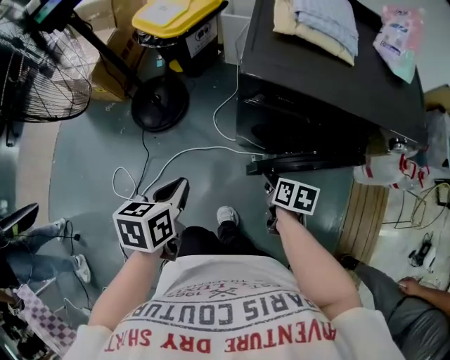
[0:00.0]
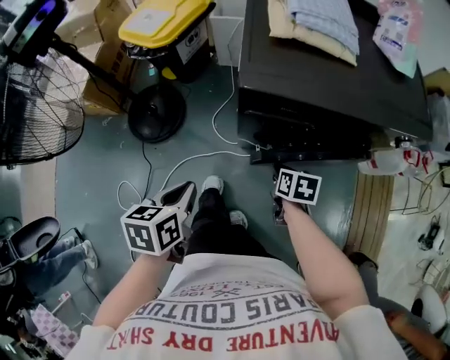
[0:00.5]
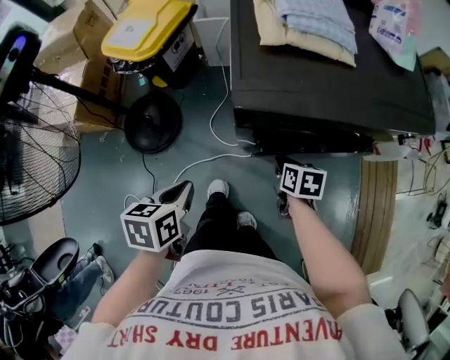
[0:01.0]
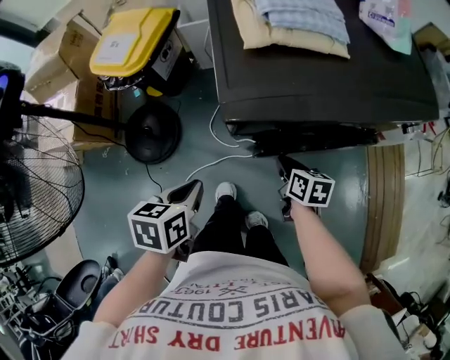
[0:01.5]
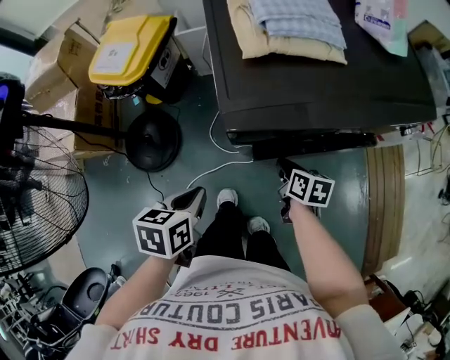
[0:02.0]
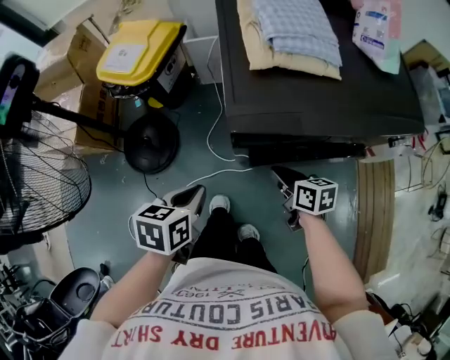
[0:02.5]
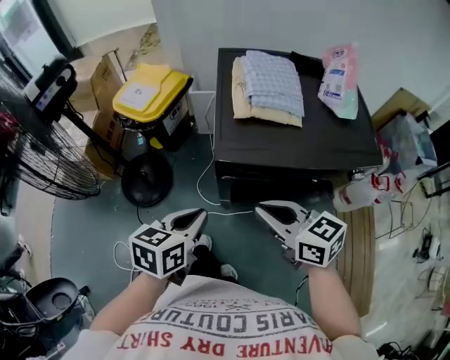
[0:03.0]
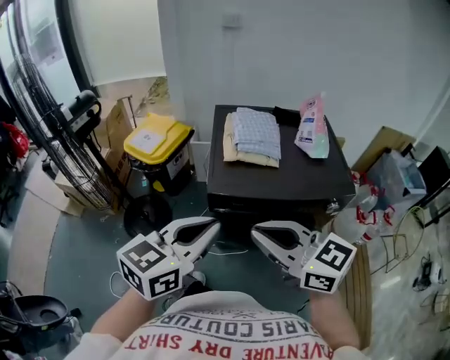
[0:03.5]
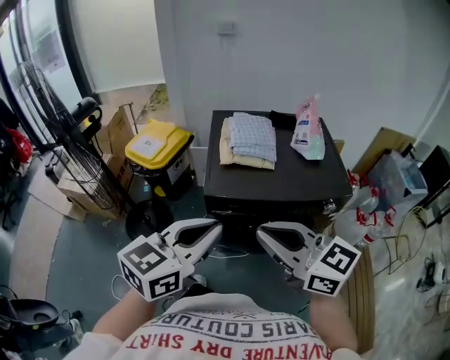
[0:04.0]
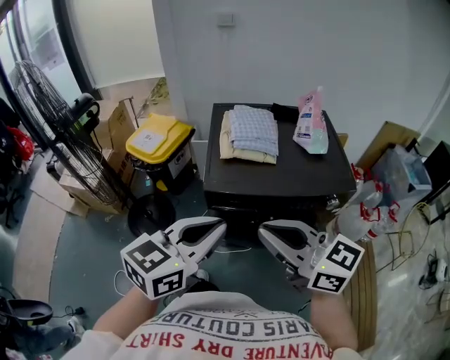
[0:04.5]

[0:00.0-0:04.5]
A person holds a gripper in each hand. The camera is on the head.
0:00.0 to 0:02.0: Both grippers move forward, some 10 cm. The left gripper changes its angle by some 20 degrees. Meanwhile the right gripper closes its fingers.
0:02.0 to 0:04.5: The left gripper goes about 35 cm upward and to the right, and angles its fingers upward, by approximately 40 degrees. Meanwhile the right gripper heads upward, covering some 50 cm, and angles its fingers upward, by roughly 40 degrees.

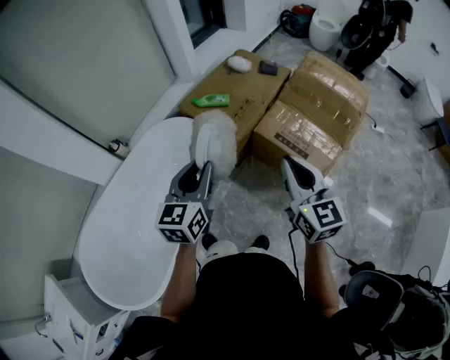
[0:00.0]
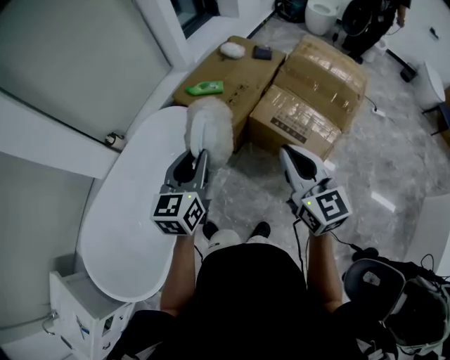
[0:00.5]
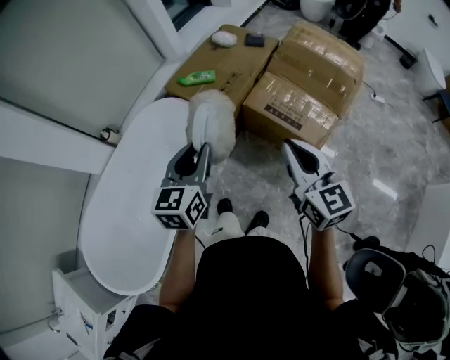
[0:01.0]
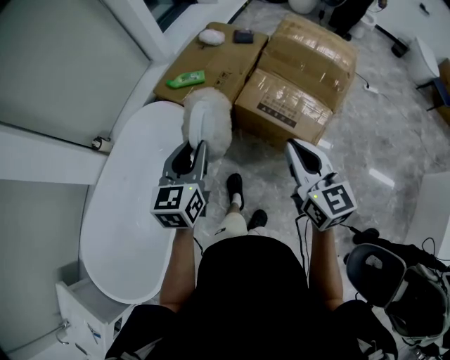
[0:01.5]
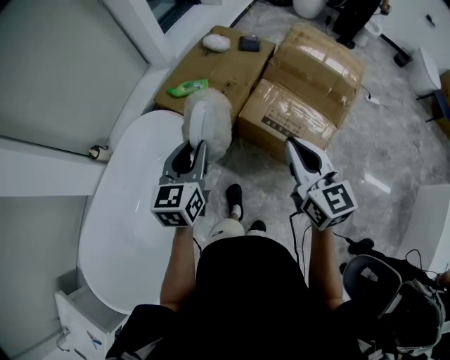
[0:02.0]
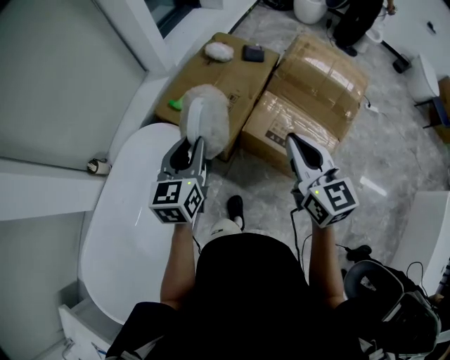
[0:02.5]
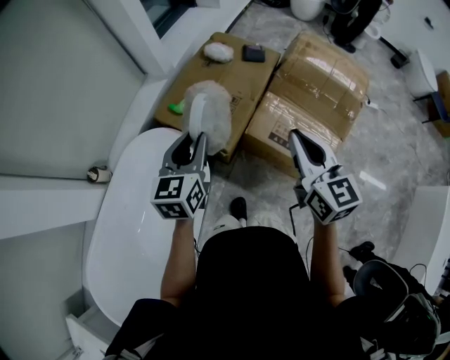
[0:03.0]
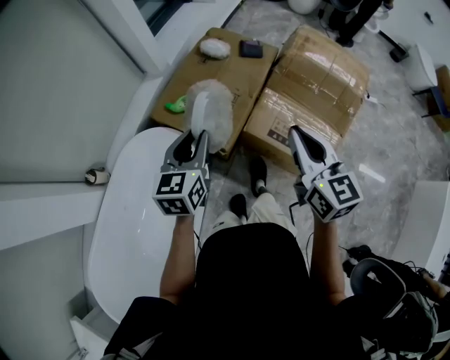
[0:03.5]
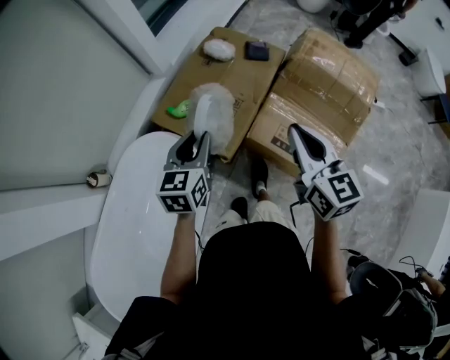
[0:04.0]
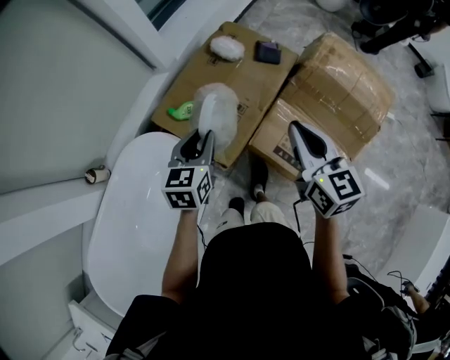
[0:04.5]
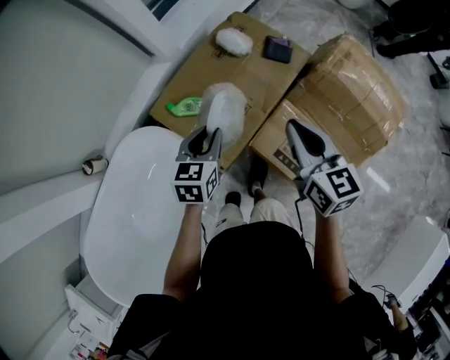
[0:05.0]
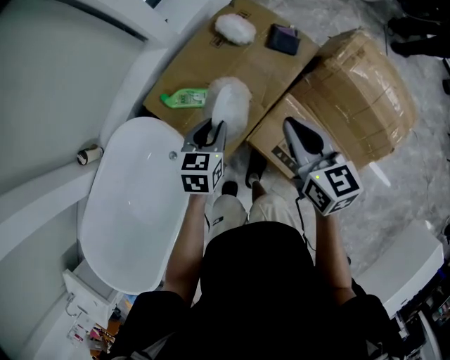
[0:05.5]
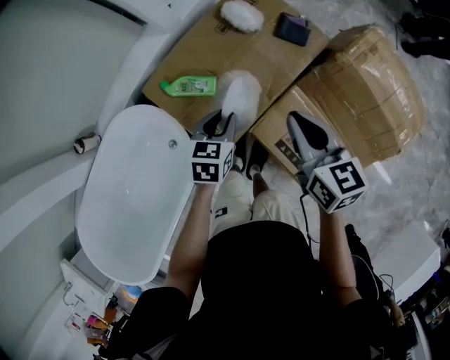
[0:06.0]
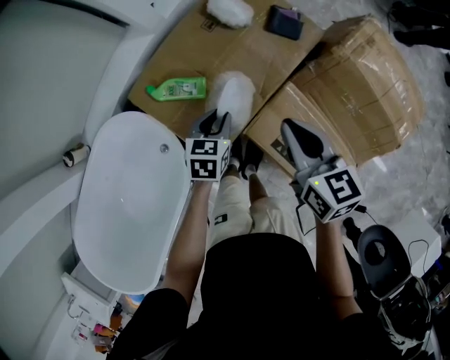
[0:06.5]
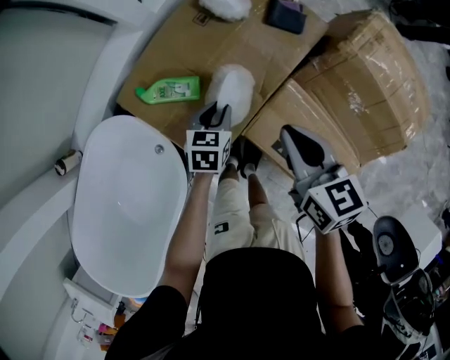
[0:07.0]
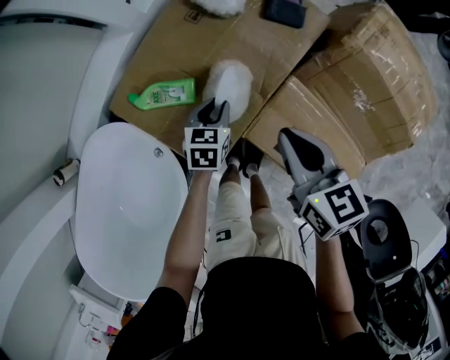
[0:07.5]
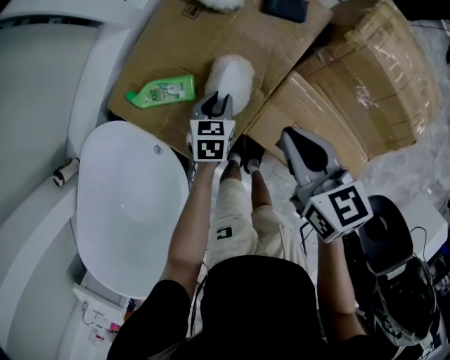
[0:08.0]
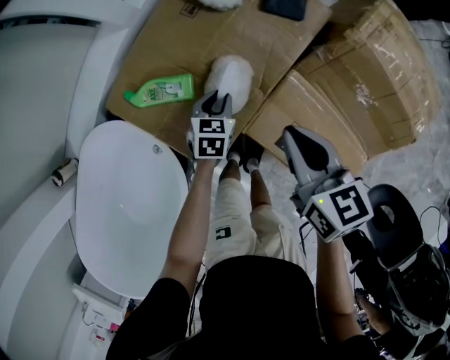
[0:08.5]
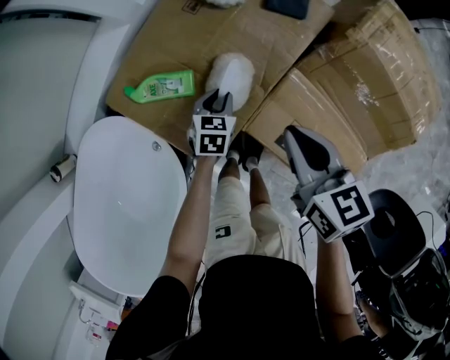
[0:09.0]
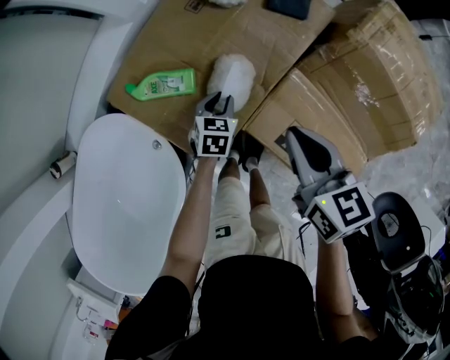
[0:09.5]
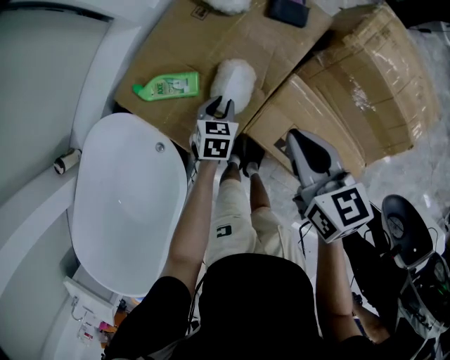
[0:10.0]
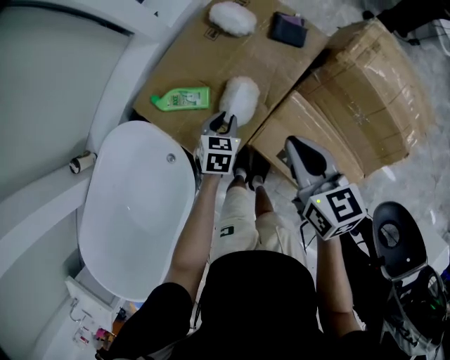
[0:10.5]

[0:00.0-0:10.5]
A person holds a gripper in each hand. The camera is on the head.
0:00.0 to 0:02.0: The two grippers go roughly 15 cm forward and to the right.
0:02.0 to 0:04.0: Both grippers move forward, roughly 25 cm.
0:04.0 to 0:06.5: The right gripper moves forward and downward, roughly 30 cm, and rotates approximately 30 degrees. Meanwhile the left gripper is displaced downward, forward and to the right by about 35 cm, and rotates some 20 degrees.
0:06.5 to 0:08.5: The left gripper goes roughly 15 cm downward and forward, while the right gripper moves downward, roughly 10 cm.
0:08.5 to 0:10.5: Both grippers travel together upward, about 5 cm.

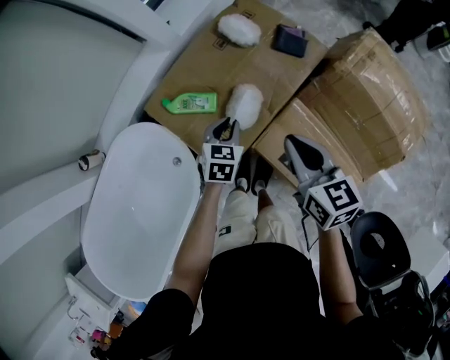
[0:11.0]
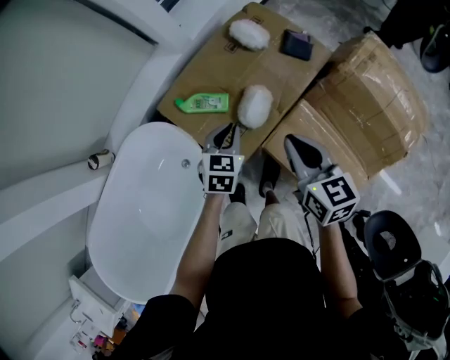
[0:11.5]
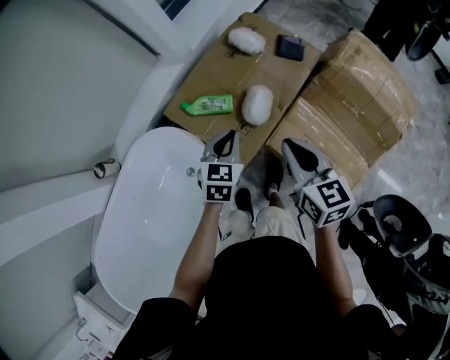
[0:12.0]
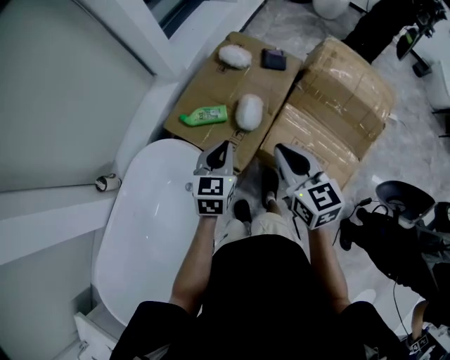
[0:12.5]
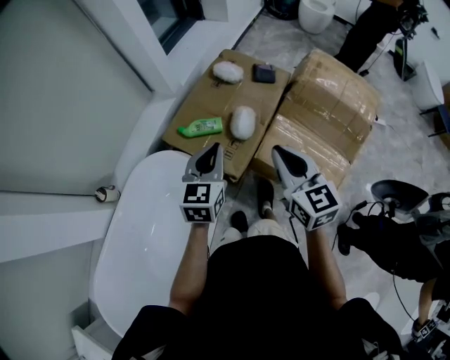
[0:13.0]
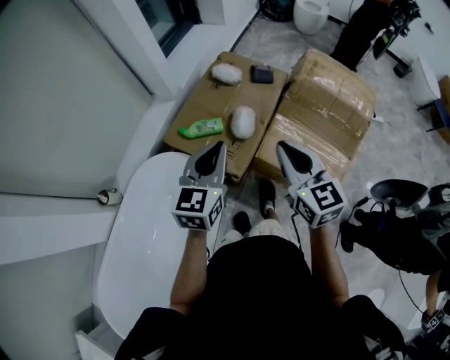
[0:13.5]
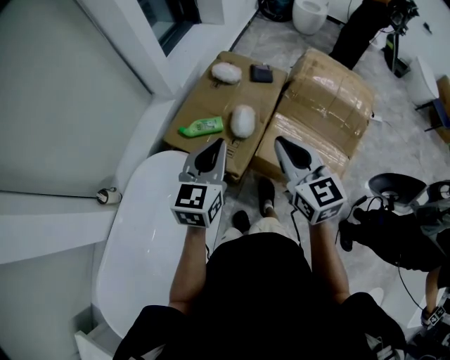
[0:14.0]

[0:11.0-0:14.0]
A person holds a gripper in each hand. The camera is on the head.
0:11.0 to 0:12.5: The left gripper shifts roughly 25 cm upward, backward and to the left. The right gripper shifts about 20 cm backward, to the left and upward.
0:12.5 to 0:14.0: The left gripper moves upward and backward, approximately 15 cm. Meanwhile the right gripper moves upward, approximately 10 cm.

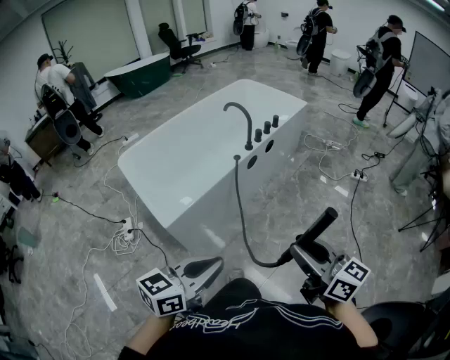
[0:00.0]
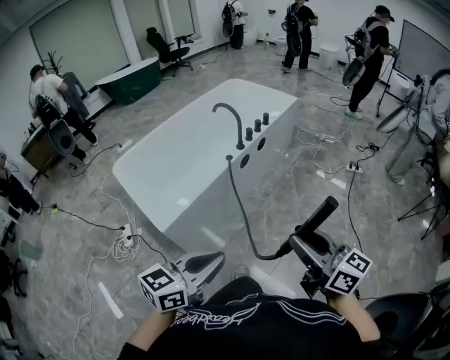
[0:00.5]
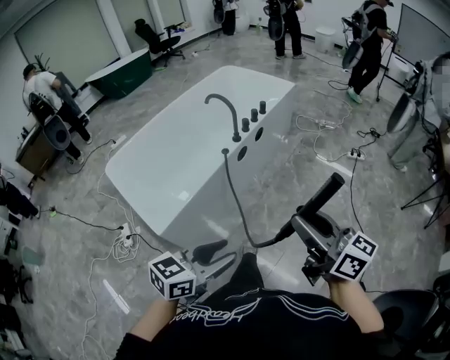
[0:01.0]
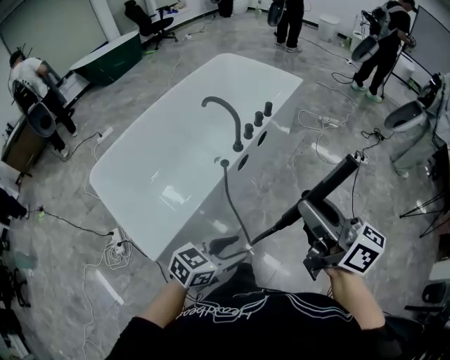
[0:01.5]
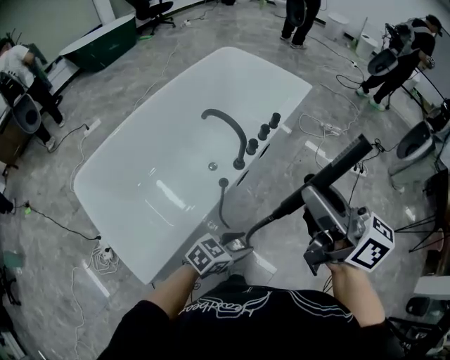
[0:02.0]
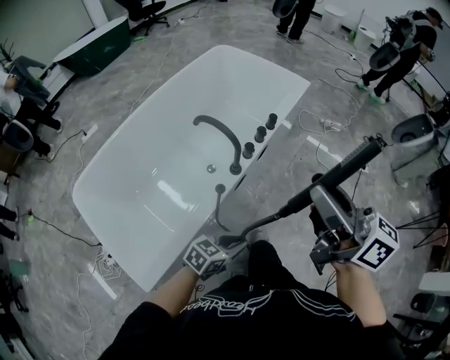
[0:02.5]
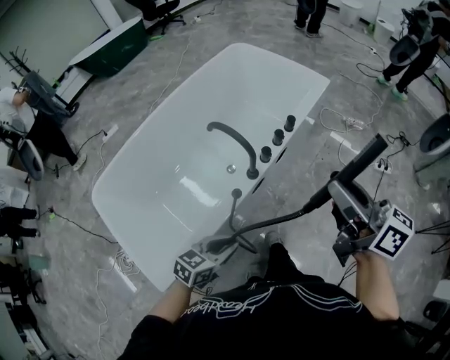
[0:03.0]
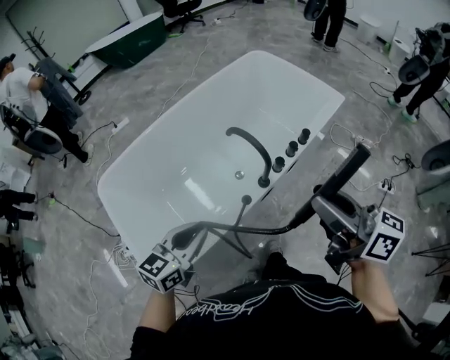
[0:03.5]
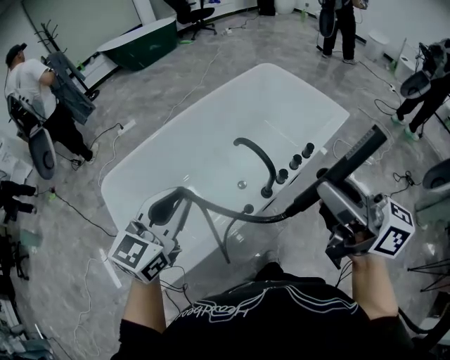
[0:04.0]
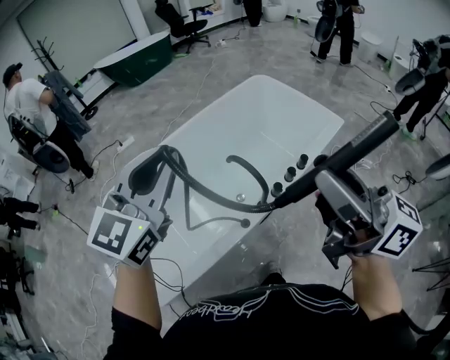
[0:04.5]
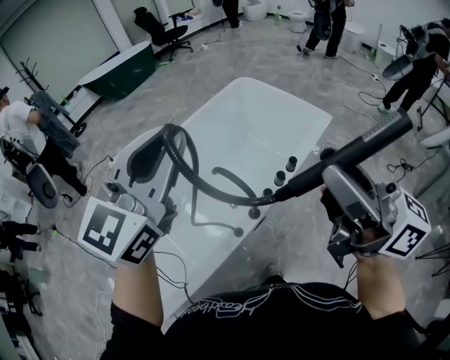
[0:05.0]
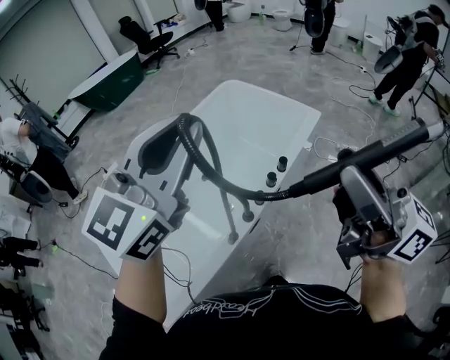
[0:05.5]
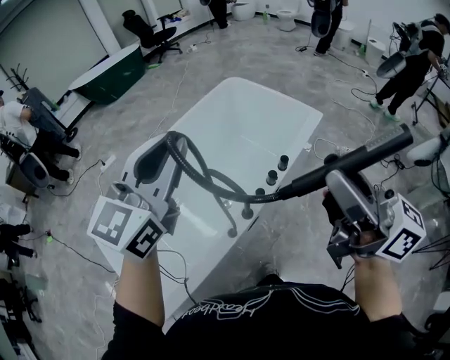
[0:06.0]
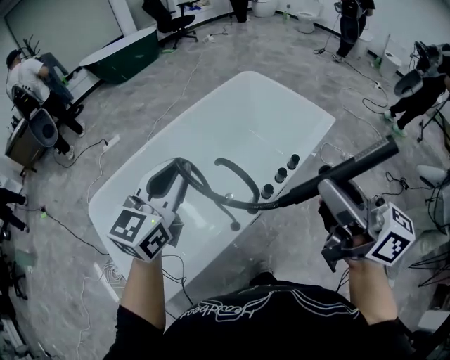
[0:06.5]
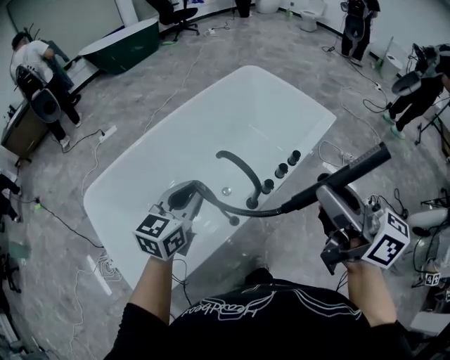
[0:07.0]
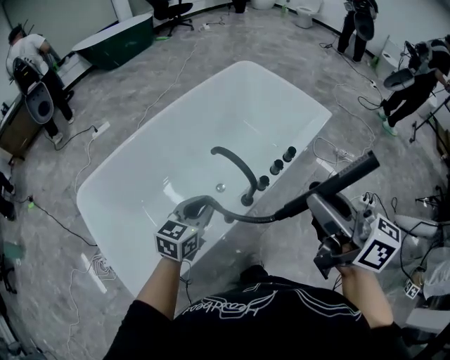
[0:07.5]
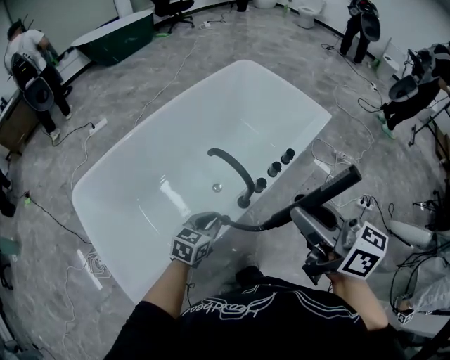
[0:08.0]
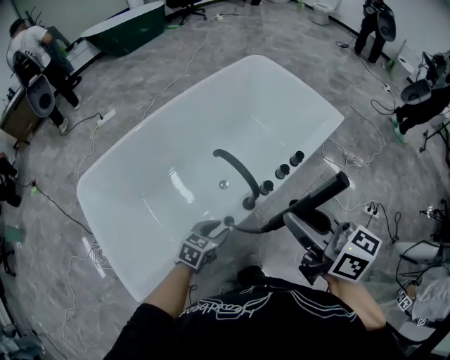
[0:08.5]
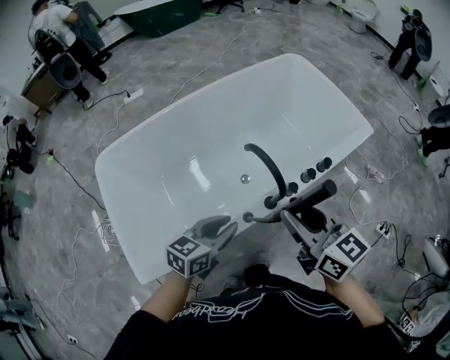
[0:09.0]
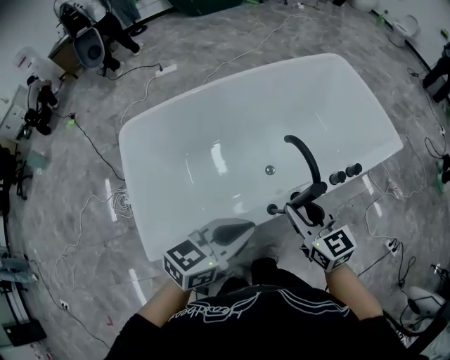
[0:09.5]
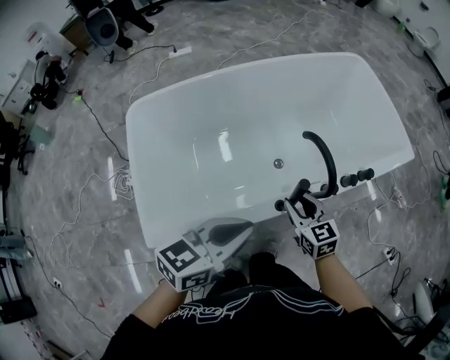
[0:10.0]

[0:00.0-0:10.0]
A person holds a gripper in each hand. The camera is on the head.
0:00.0 to 0:02.0: The left gripper shifts approximately 40 cm forward and downward, rotates some 30 degrees, and opens up, while the right gripper goes some 40 cm forward.
0:02.0 to 0:04.0: The right gripper changes place by approximately 10 cm. Meanwhile the left gripper shifts approximately 30 cm upward, swivels approximately 60 degrees, and closes up.
0:04.0 to 0:06.0: The left gripper is displaced upward, to the right and forward by about 20 cm. The right gripper goes approximately 10 cm to the right and upward.
0:06.0 to 0:08.0: The left gripper goes approximately 40 cm downward, and tilts its fingers roughly 40 degrees downward. The right gripper moves downward and to the left, some 15 cm, and turns by some 20 degrees.
0:08.0 to 0:10.0: The right gripper shifts some 35 cm downward and to the left, and changes its angle by some 40 degrees; the left gripper travels upward, backward and to the left by roughly 20 cm, and swivels roughly 20 degrees.
